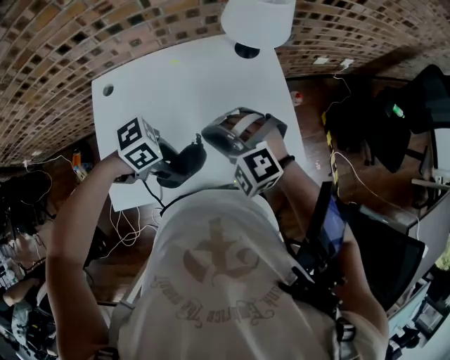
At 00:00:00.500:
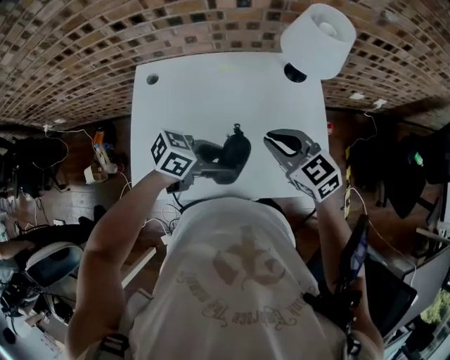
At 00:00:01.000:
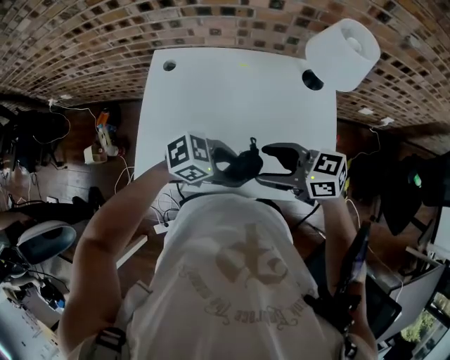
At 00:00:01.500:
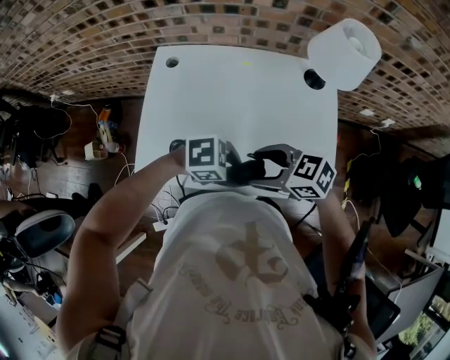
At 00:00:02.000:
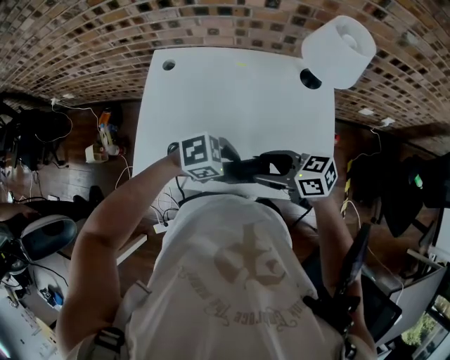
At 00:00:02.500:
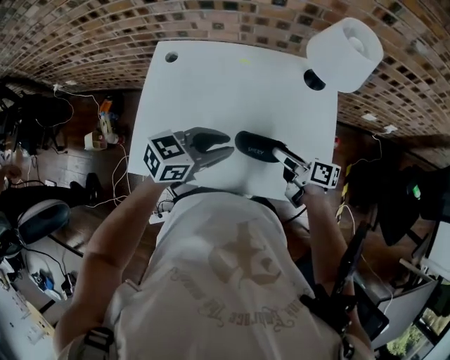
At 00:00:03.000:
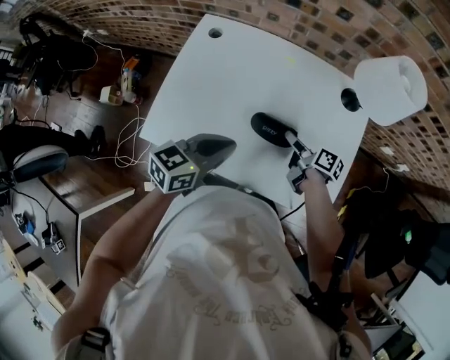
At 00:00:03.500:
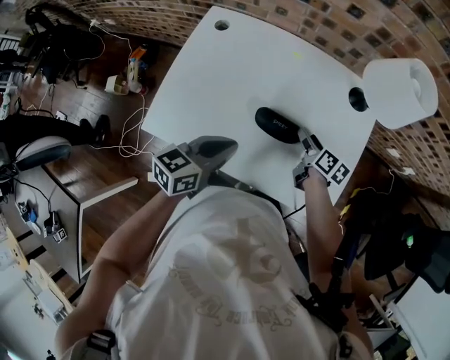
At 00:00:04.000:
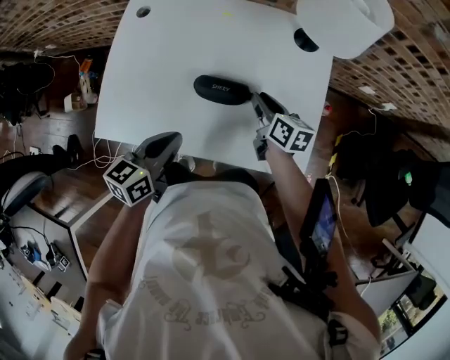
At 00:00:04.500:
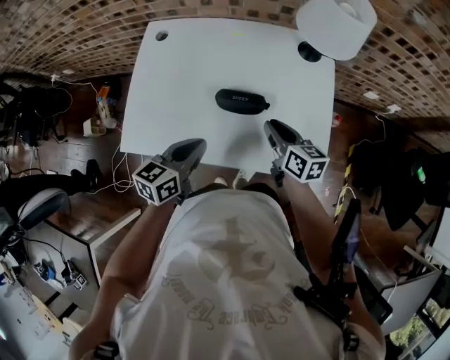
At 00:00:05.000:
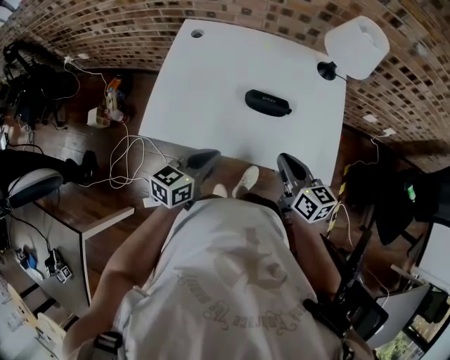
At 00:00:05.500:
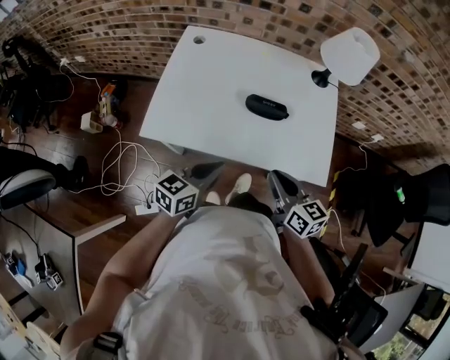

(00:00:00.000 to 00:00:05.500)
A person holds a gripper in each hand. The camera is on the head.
00:00:00.000 - 00:00:02.000: The right gripper ends up roughly 5 cm from where it was, rolls clockwise, seen from behind, by about 70 degrees, and opens up, while the left gripper ends up some 5 cm from where it was, and rotates roughly 20 degrees.
00:00:02.000 - 00:00:03.500: The right gripper changes place by some 25 cm, and swivels about 50 degrees; the left gripper changes place by some 5 cm, turns by approximately 70 degrees, and closes up.
00:00:03.500 - 00:00:05.500: The right gripper travels backward and upward by approximately 30 cm, turns by some 30 degrees, and closes up; the left gripper shifts roughly 15 cm backward.

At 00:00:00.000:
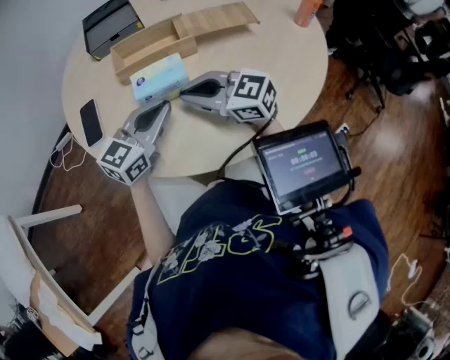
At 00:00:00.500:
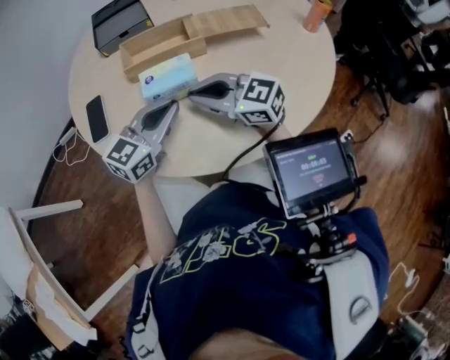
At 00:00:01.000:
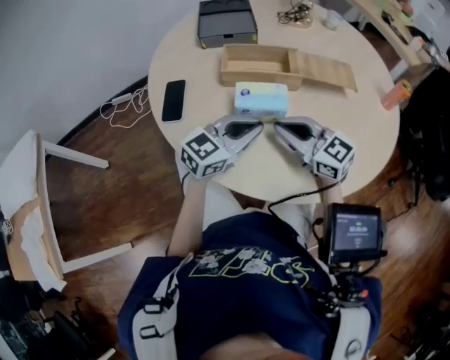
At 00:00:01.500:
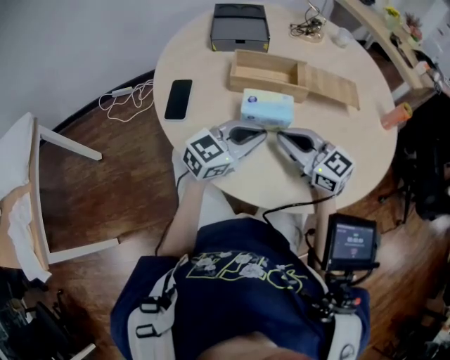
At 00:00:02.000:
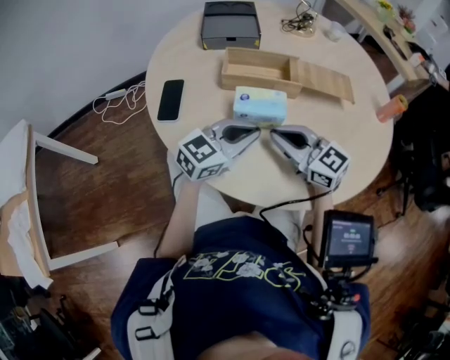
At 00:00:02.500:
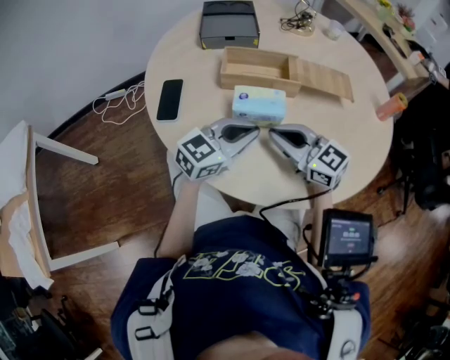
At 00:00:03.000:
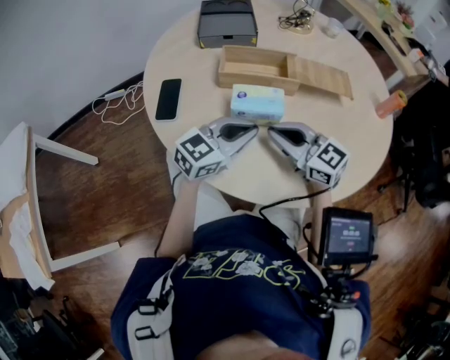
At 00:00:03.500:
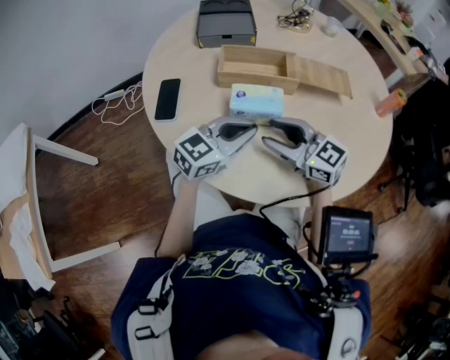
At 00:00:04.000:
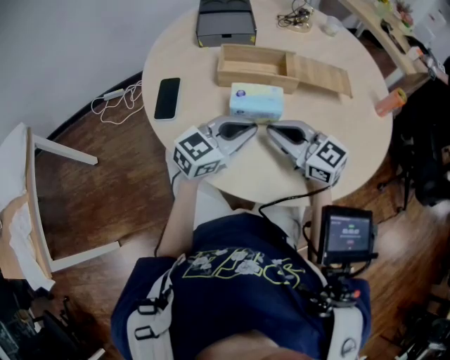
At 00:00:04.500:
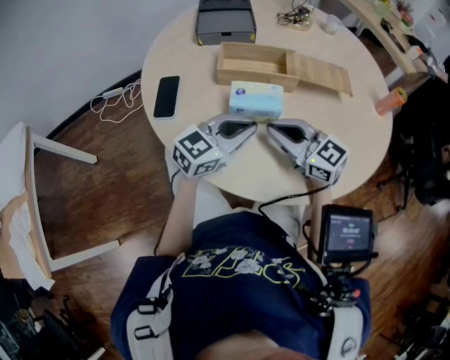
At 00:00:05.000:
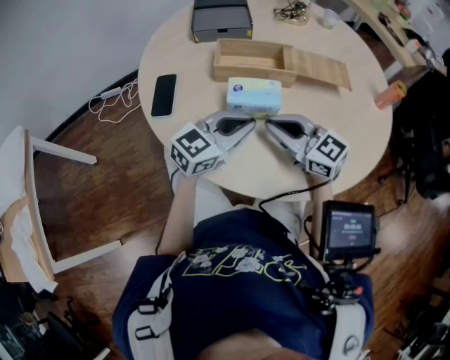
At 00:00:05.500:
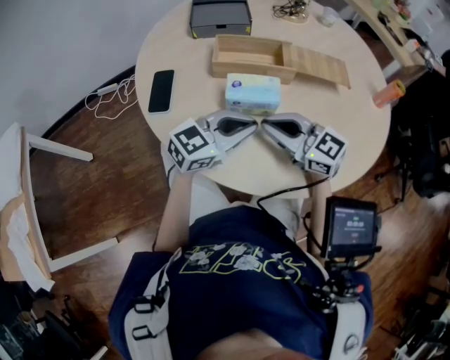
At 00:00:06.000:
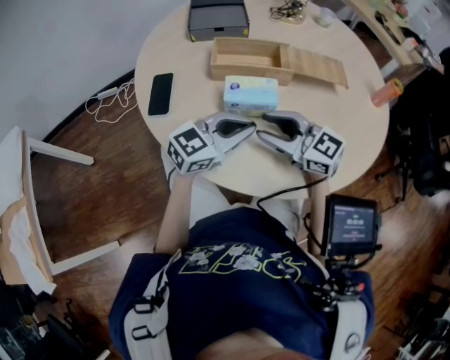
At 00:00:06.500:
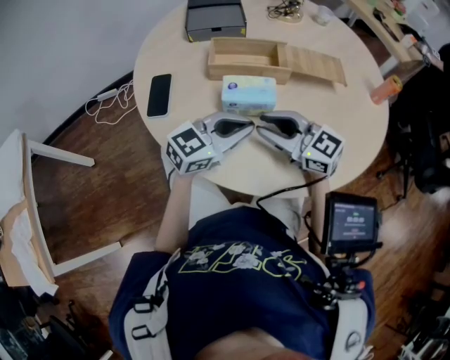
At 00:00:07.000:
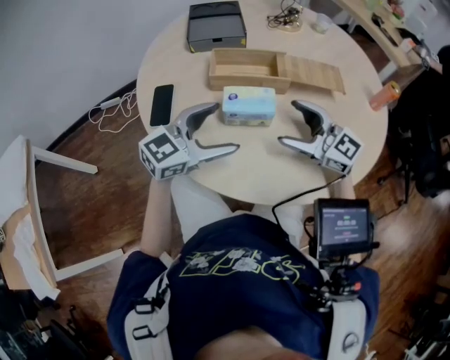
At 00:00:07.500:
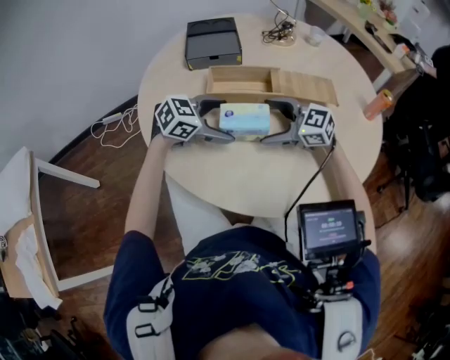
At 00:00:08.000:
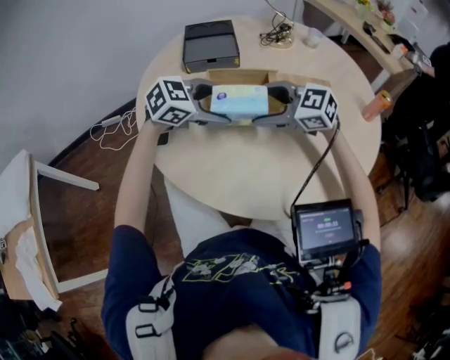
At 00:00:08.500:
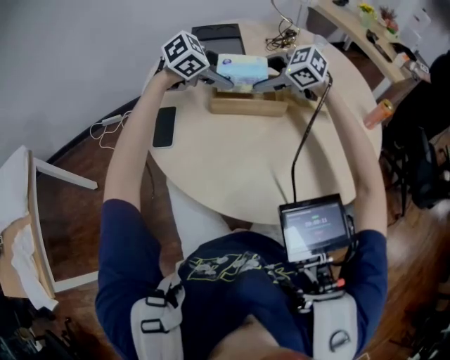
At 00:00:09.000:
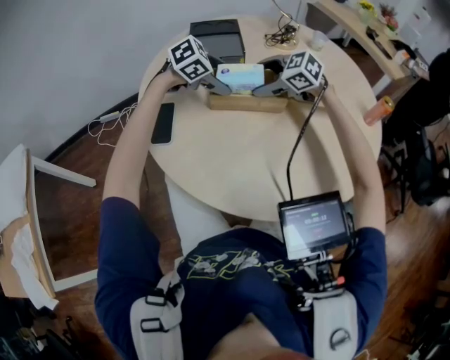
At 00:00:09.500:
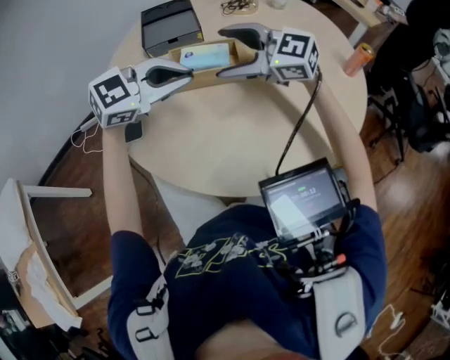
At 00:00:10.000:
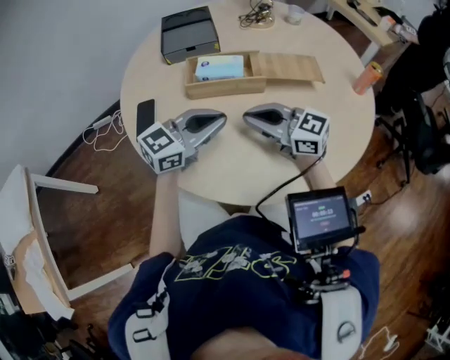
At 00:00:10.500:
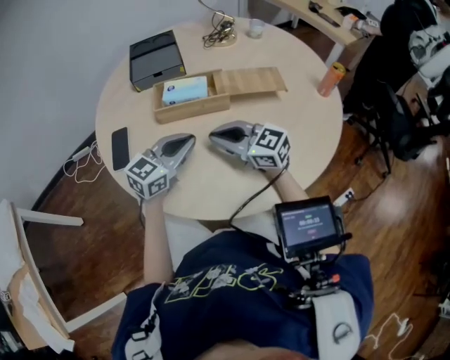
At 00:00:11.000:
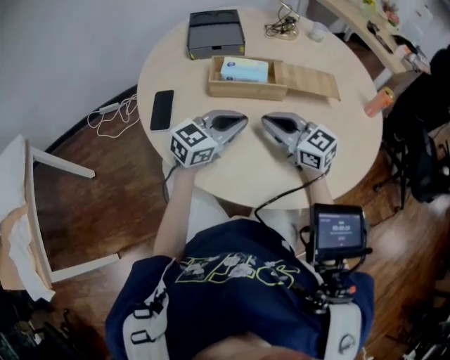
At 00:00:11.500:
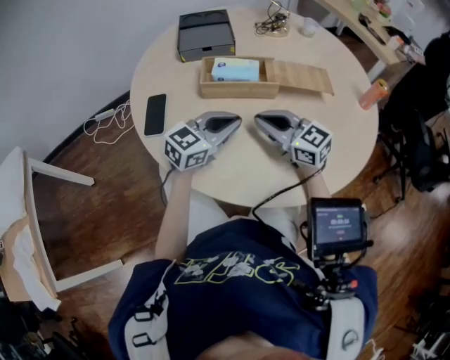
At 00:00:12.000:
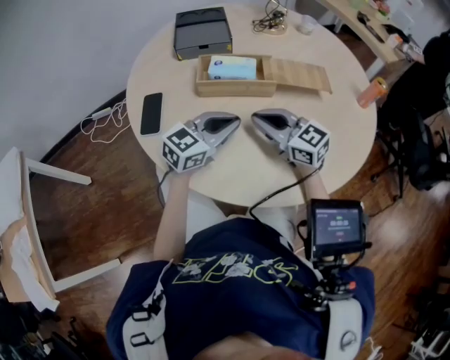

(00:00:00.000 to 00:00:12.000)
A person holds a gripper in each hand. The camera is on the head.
00:00:00.000 - 00:00:02.000: The grippers stay close to where they were, moving slightly.
00:00:02.000 - 00:00:04.000: The right gripper opens and closes again.
00:00:04.000 - 00:00:06.000: The grippers make only small movements.
00:00:06.000 - 00:00:08.000: The right gripper changes place by roughly 10 cm, turns by roughly 20 degrees, and opens up. Meanwhile the left gripper shifts by some 10 cm, swivels some 30 degrees, and opens its fingers.
00:00:08.000 - 00:00:10.000: The left gripper travels upward and back again, approximately 5 cm each way, changes its angle by approximately 30 degrees, and closes up. Meanwhile the right gripper moves roughly 5 cm upward and comes back, swivels approximately 30 degrees, and closes its fingers.
00:00:10.000 - 00:00:12.000: There are only small adjustments of the grippers.

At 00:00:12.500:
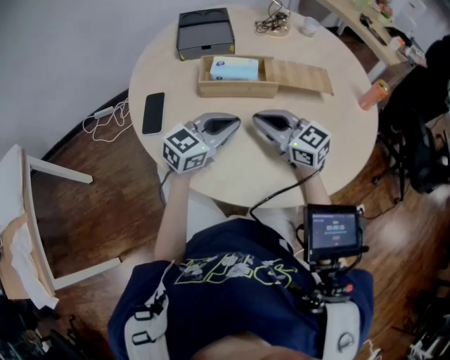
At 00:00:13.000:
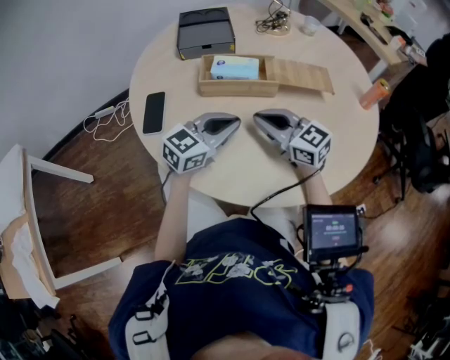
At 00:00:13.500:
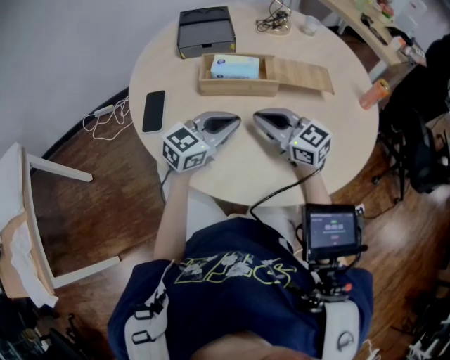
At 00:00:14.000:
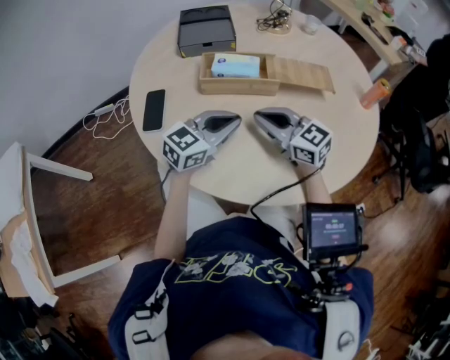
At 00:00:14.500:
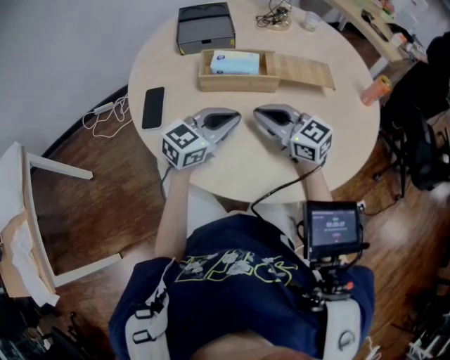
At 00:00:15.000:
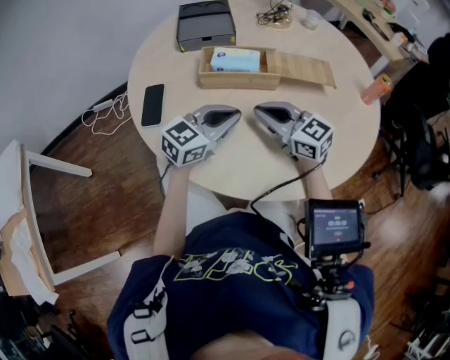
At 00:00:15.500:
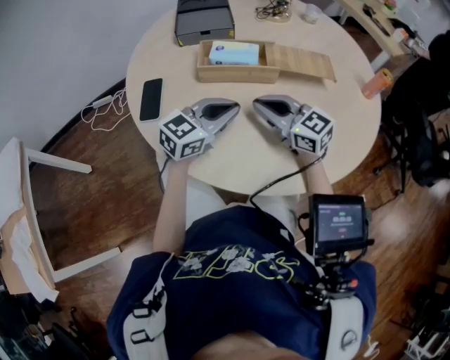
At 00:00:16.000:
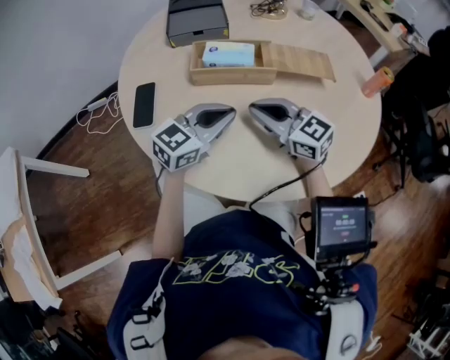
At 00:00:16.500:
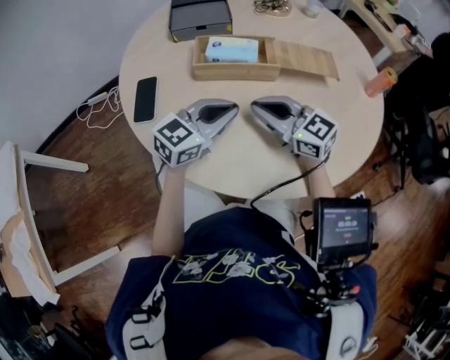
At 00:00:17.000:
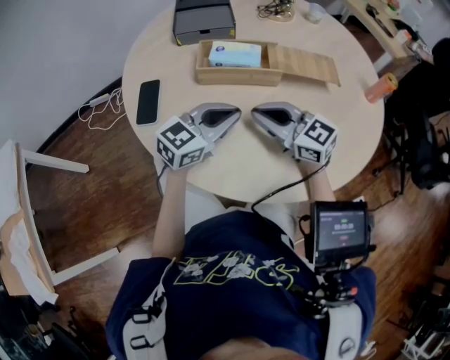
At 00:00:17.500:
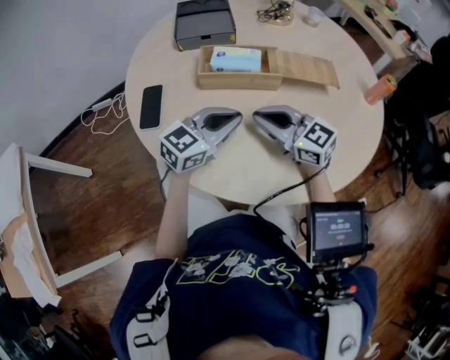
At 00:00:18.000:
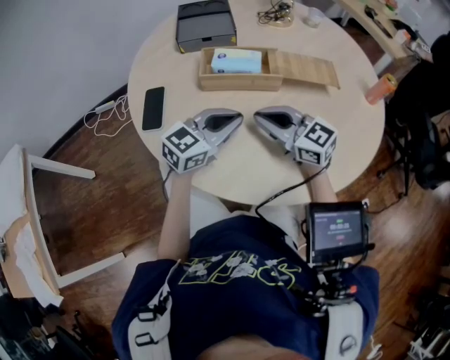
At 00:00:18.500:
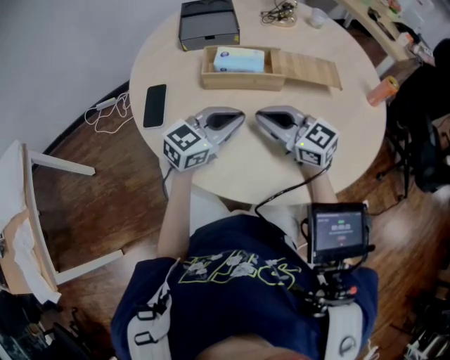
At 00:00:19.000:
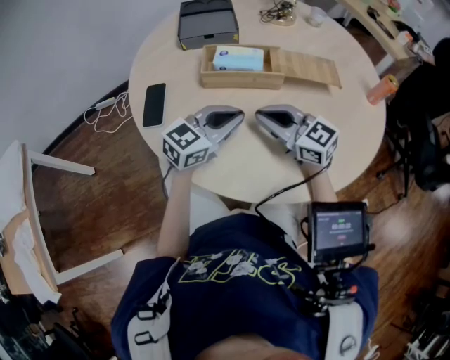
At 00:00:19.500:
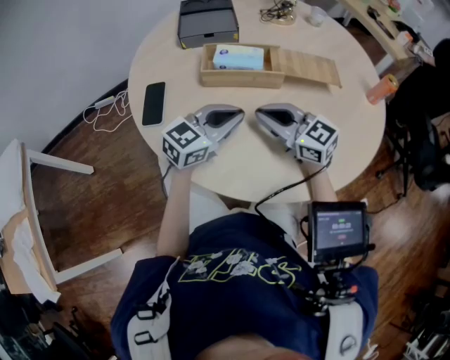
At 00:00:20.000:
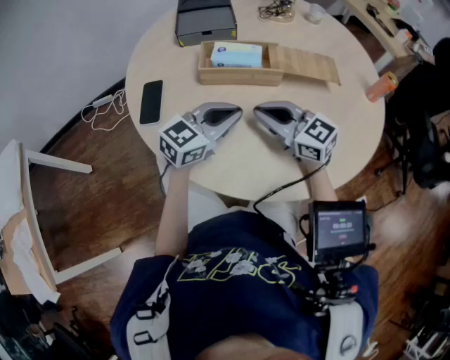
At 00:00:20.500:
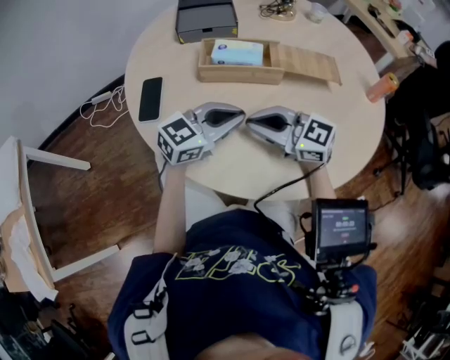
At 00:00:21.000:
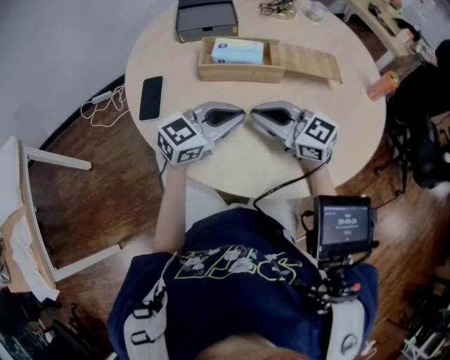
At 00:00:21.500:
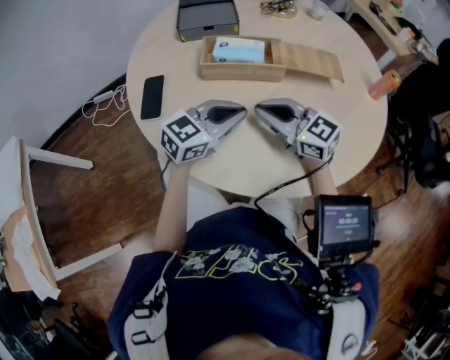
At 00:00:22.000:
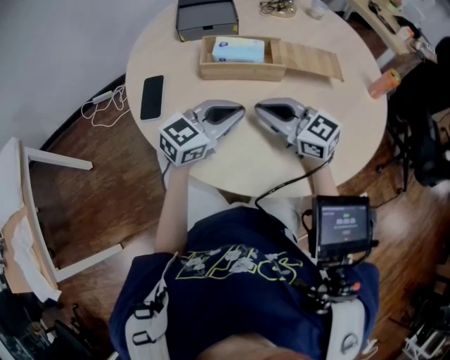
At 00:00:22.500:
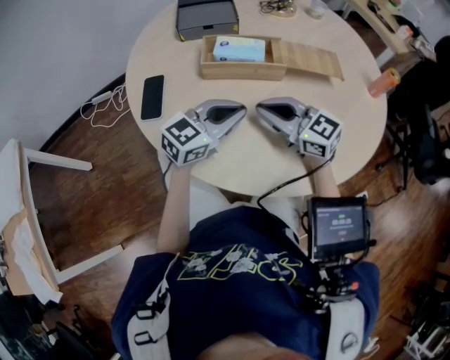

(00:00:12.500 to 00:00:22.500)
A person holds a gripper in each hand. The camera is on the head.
00:00:12.500 - 00:00:14.500: Both grippers stay about where they are.
00:00:14.500 - 00:00:16.500: Neither gripper changes place.
00:00:16.500 - 00:00:18.500: Both grippers stay put.
00:00:18.500 - 00:00:22.500: There are only small adjustments of the grippers.
